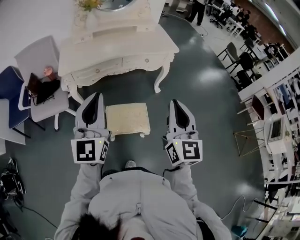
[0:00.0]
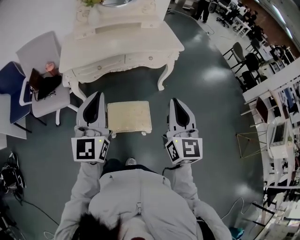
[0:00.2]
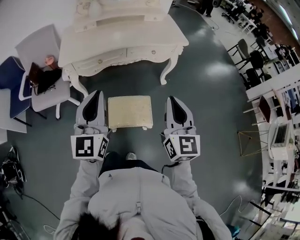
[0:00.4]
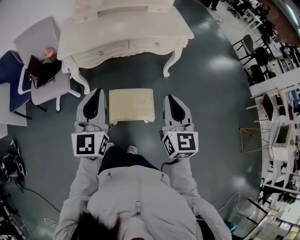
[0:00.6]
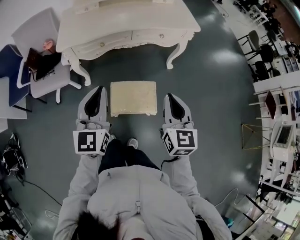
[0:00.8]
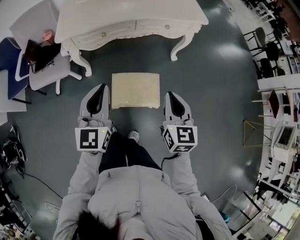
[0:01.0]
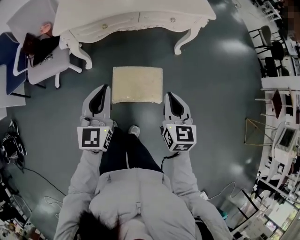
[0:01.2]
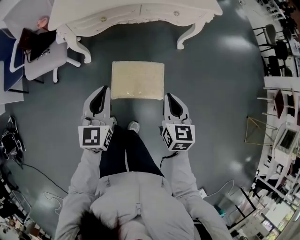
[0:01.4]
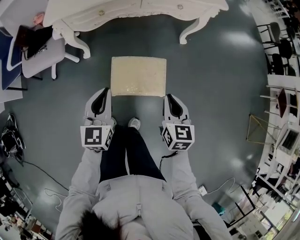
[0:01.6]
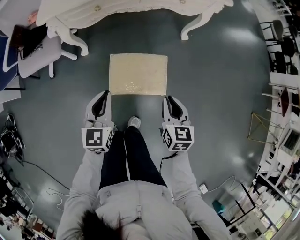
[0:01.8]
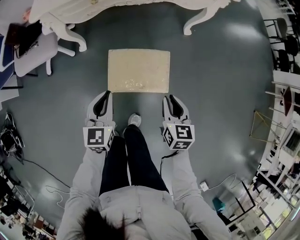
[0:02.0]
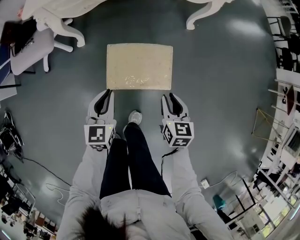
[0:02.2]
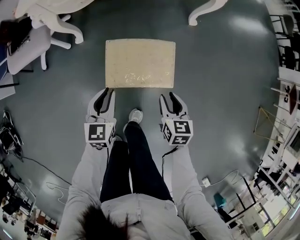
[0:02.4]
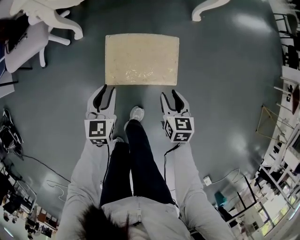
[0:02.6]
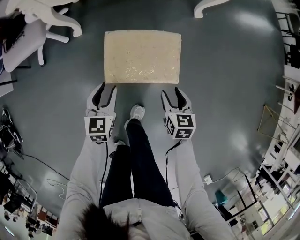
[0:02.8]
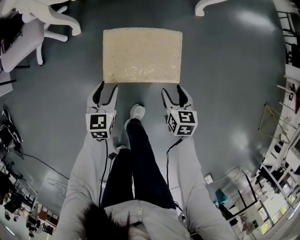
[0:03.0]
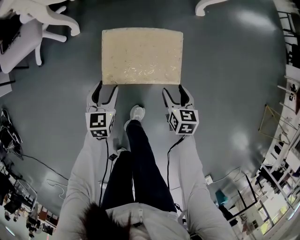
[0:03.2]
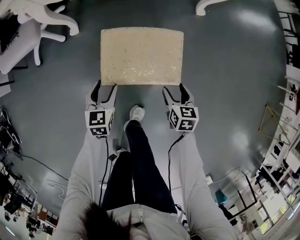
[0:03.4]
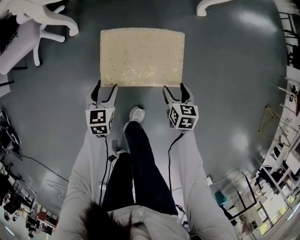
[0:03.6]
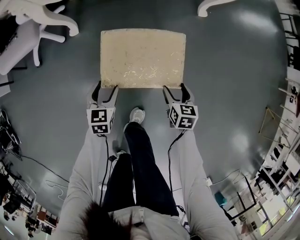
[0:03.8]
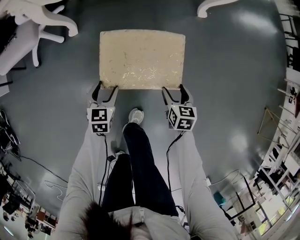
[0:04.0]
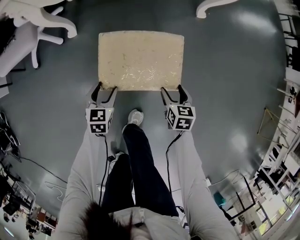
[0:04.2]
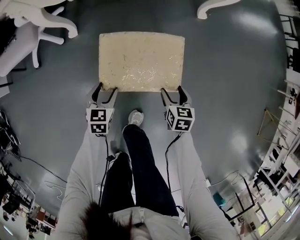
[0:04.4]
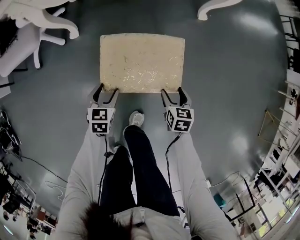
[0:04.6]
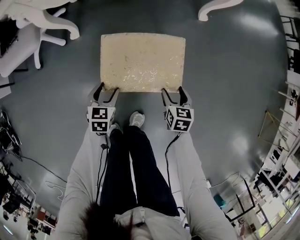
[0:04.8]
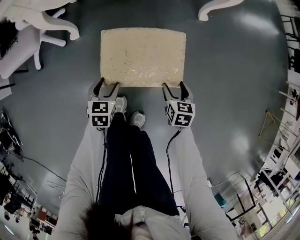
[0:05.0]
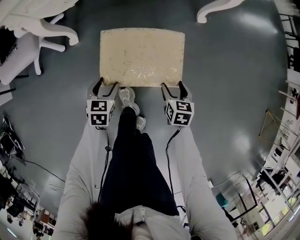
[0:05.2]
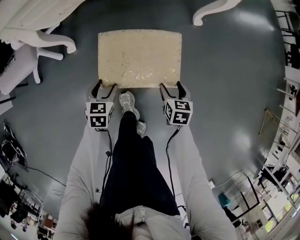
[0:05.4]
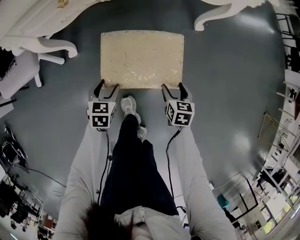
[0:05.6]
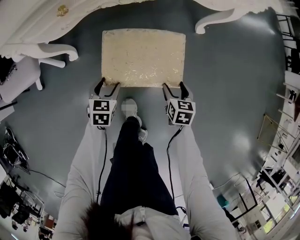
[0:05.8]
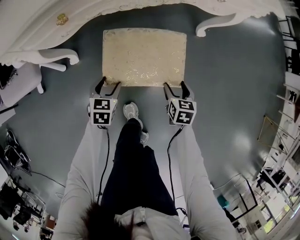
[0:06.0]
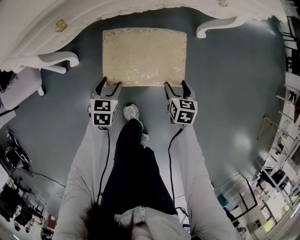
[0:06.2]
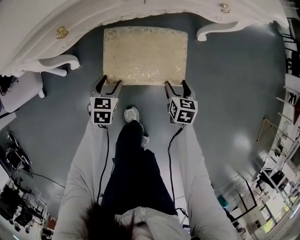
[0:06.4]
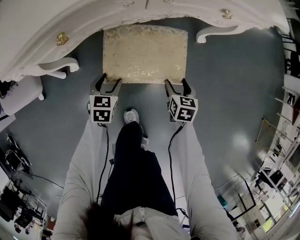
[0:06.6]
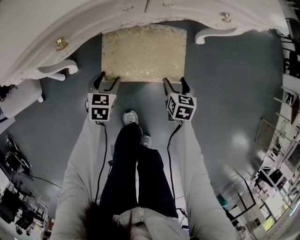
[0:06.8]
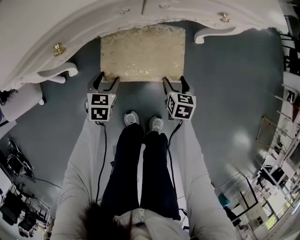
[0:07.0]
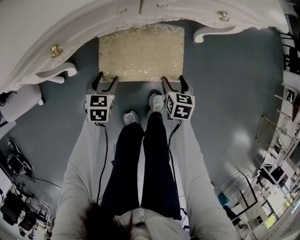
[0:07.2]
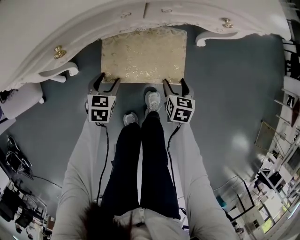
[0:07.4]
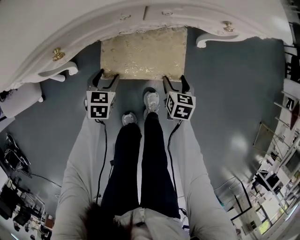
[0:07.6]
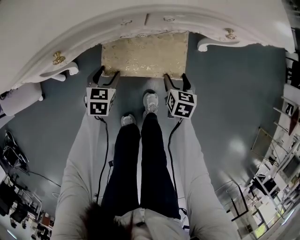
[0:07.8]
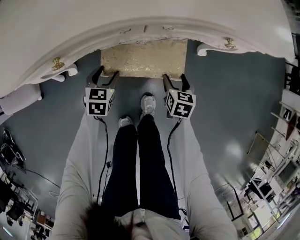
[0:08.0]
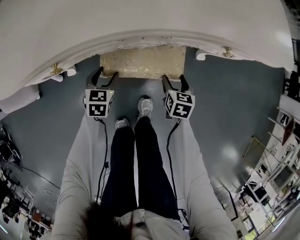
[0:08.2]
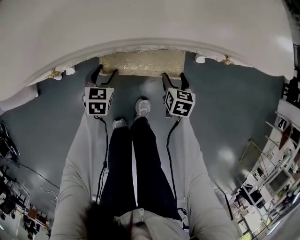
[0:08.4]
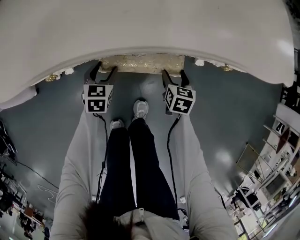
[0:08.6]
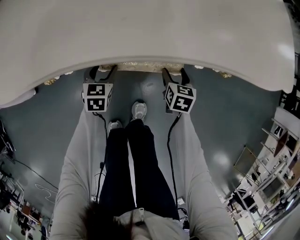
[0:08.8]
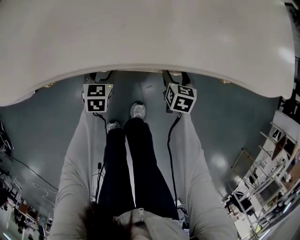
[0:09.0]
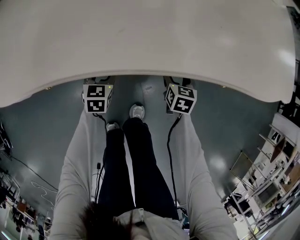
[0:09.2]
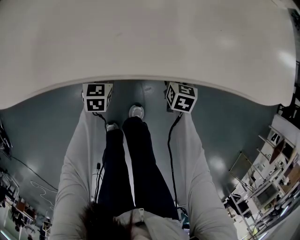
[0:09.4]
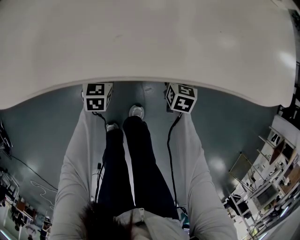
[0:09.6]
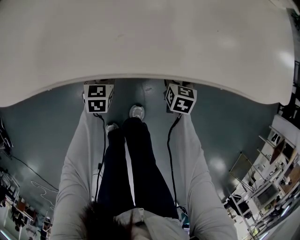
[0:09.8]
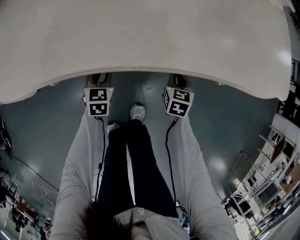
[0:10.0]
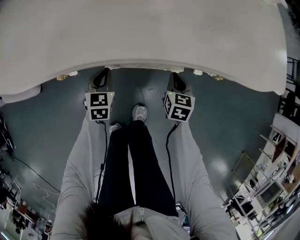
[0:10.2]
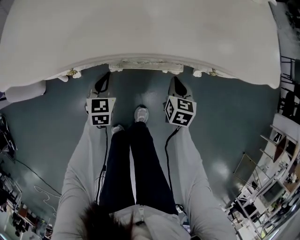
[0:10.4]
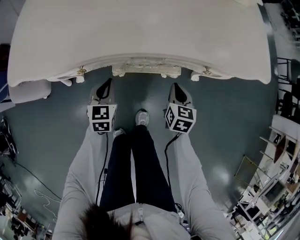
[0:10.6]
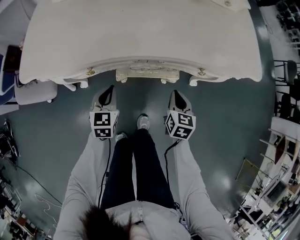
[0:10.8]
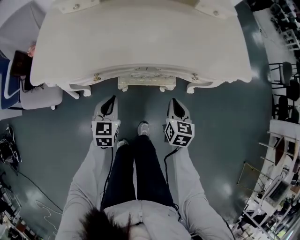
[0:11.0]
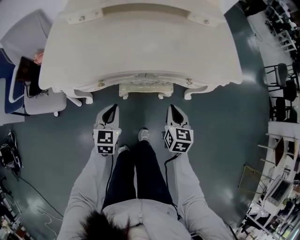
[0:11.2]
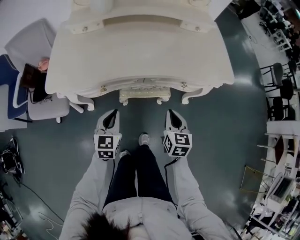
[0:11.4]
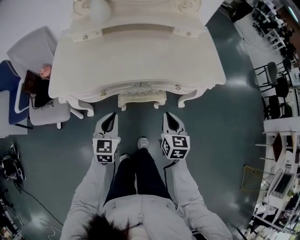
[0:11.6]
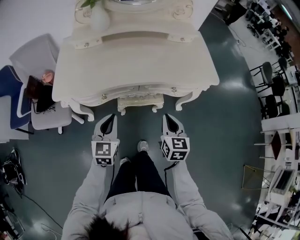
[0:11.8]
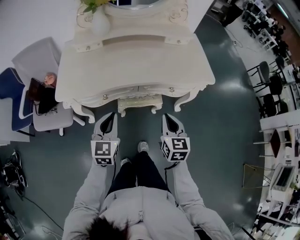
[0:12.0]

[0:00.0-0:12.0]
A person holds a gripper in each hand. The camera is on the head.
0:00.0 to 0:01.6: The two grippers go roughly 30 cm downward. The left gripper points its fingers about 30 degrees further downward. The right gripper tips its fingers downward by some 40 degrees.
0:01.6 to 0:03.0: Both grippers move downward, roughly 30 cm. The left gripper turns by approximately 20 degrees, and opens up, while the right gripper opens its fingers.
0:03.0 to 0:04.4: Both grippers travel together downward, approximately 10 cm.
0:04.4 to 0:06.0: Both grippers travel together forward, some 20 cm.
0:06.0 to 0:07.6: Both grippers travel together forward, about 10 cm.
0:07.6 to 0:09.0: The grippers both shift forward by roughly 15 cm.
0:09.0 to 0:10.4: Both grippers move upward, roughly 10 cm. The left gripper closes, while the right gripper closes.
0:10.4 to 0:12.0: The left gripper shifts about 35 cm upward, and rotates approximately 20 degrees. Meanwhile the right gripper shifts about 35 cm upward and backward, and rotates some 20 degrees.

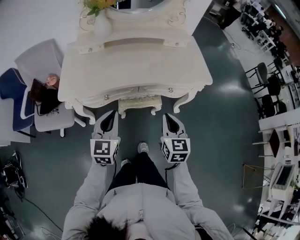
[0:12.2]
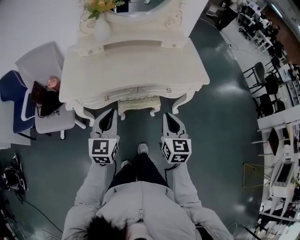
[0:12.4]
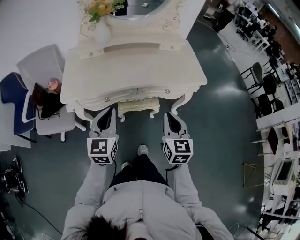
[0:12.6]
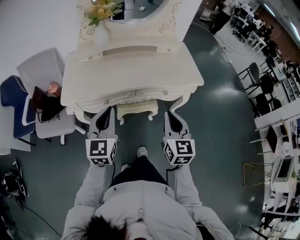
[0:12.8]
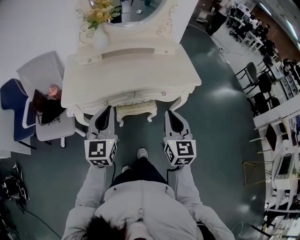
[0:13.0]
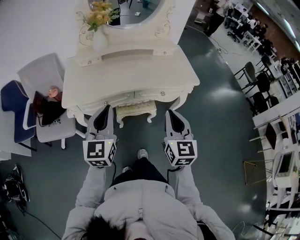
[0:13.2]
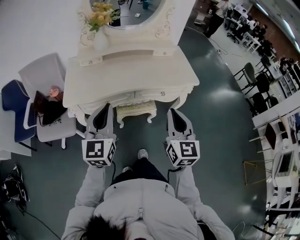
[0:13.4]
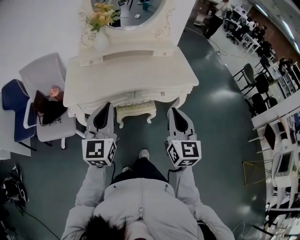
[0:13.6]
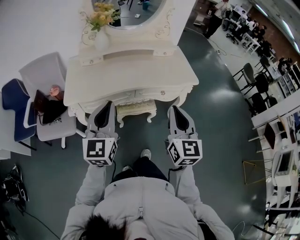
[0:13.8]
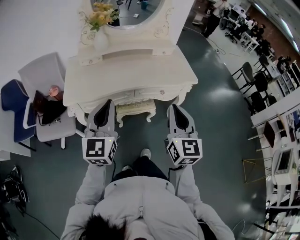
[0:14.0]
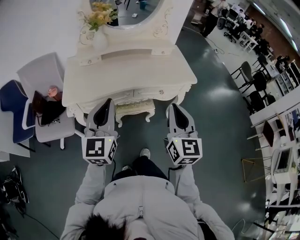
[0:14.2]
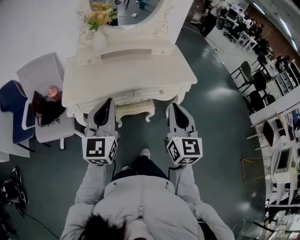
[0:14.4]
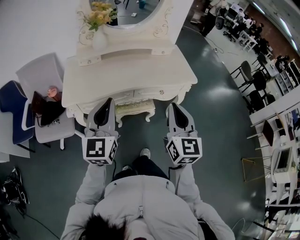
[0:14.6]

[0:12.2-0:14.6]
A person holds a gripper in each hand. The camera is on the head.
0:12.2 to 0:13.4: The left gripper moves upward, some 15 cm. Meanwhile the right gripper travels upward and backward by about 15 cm.
0:13.4 to 0:14.6: The grippers make only small movements.

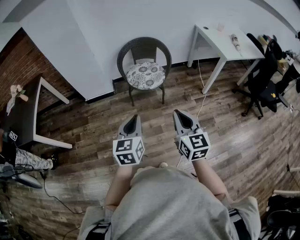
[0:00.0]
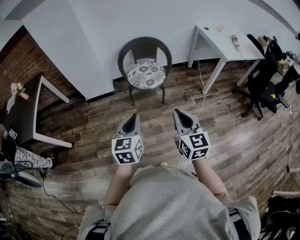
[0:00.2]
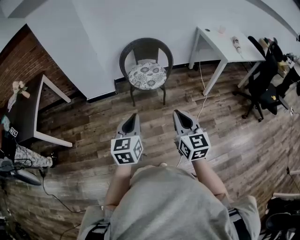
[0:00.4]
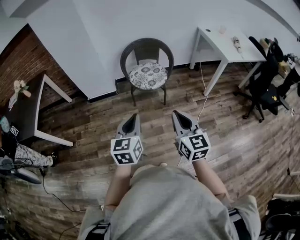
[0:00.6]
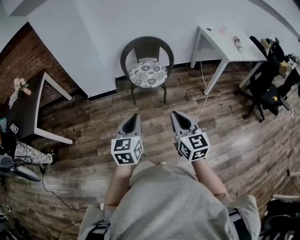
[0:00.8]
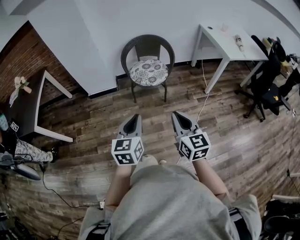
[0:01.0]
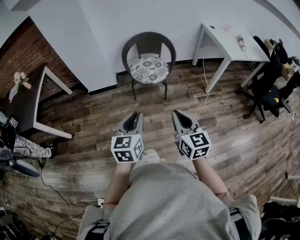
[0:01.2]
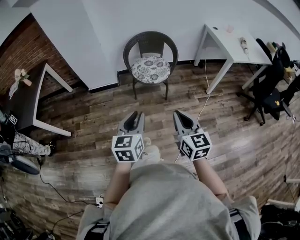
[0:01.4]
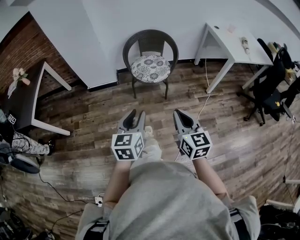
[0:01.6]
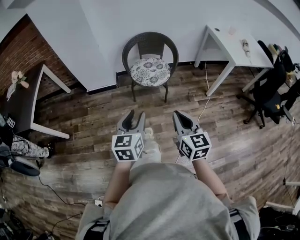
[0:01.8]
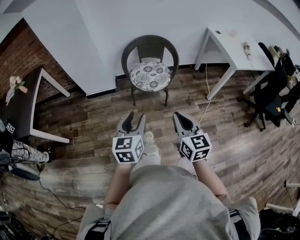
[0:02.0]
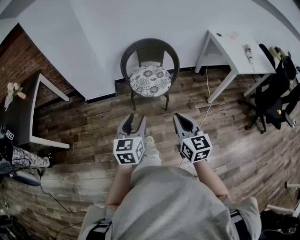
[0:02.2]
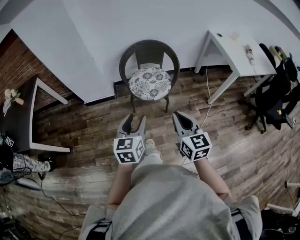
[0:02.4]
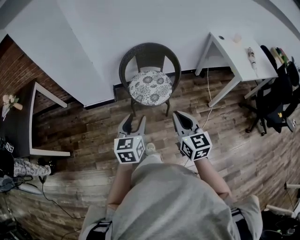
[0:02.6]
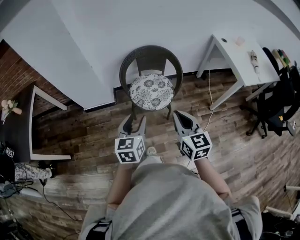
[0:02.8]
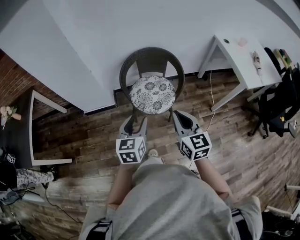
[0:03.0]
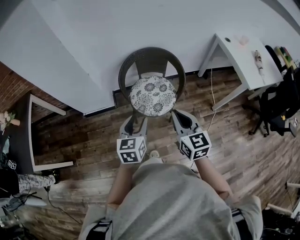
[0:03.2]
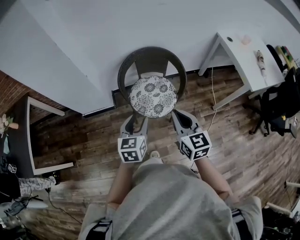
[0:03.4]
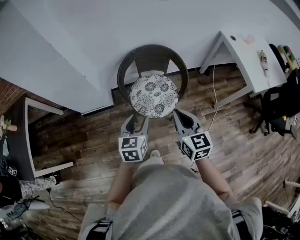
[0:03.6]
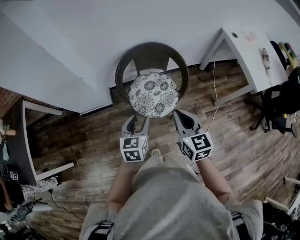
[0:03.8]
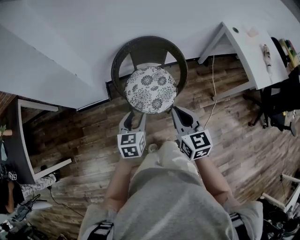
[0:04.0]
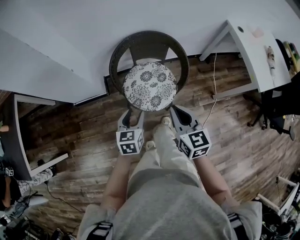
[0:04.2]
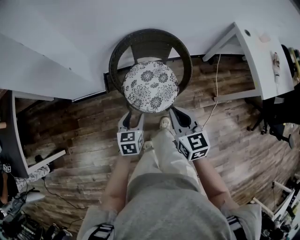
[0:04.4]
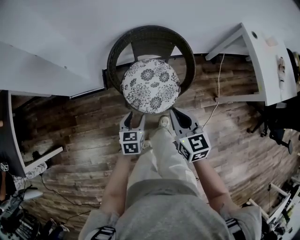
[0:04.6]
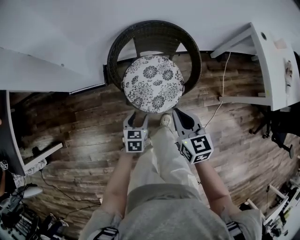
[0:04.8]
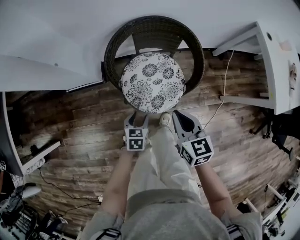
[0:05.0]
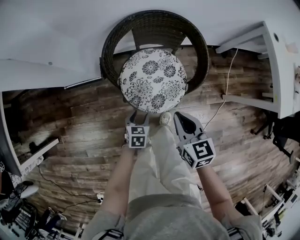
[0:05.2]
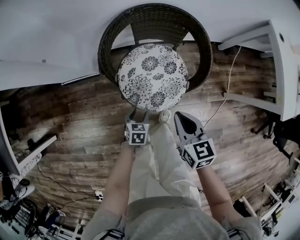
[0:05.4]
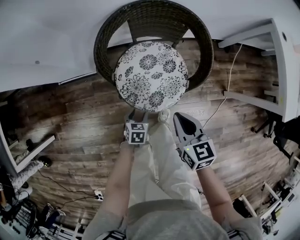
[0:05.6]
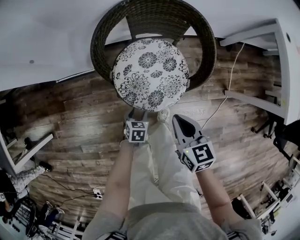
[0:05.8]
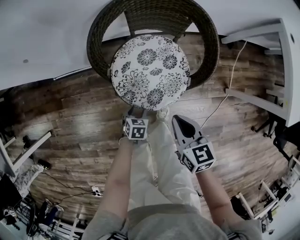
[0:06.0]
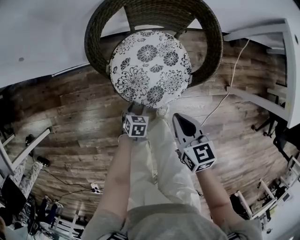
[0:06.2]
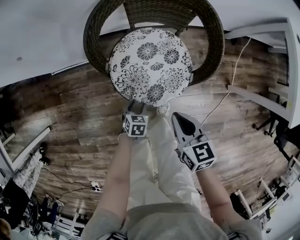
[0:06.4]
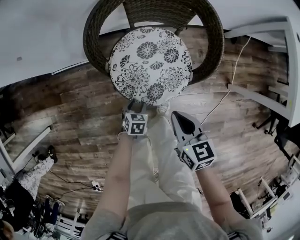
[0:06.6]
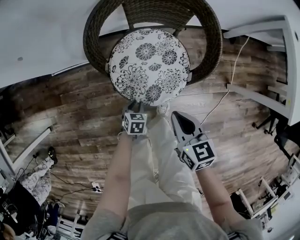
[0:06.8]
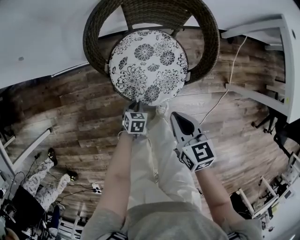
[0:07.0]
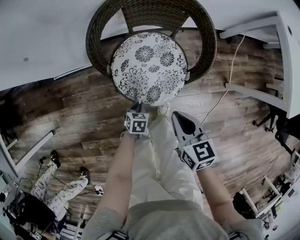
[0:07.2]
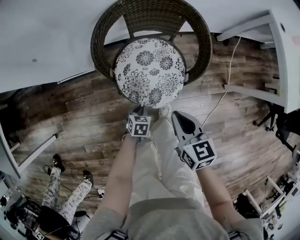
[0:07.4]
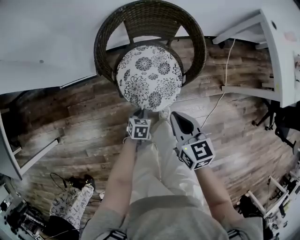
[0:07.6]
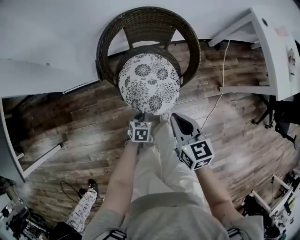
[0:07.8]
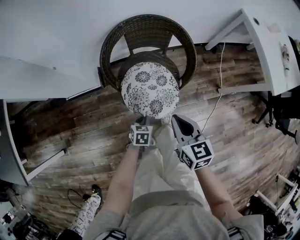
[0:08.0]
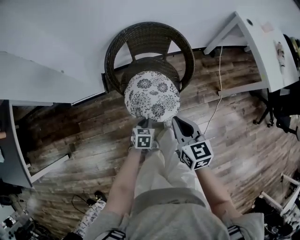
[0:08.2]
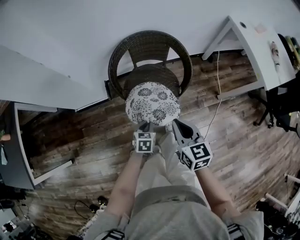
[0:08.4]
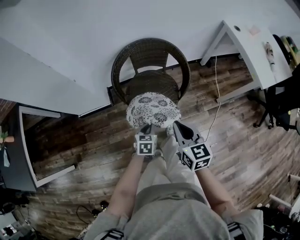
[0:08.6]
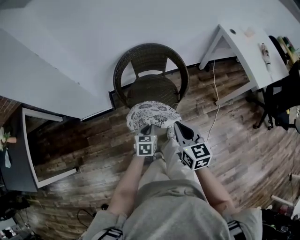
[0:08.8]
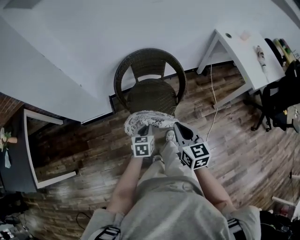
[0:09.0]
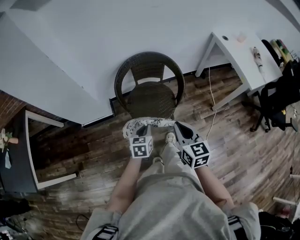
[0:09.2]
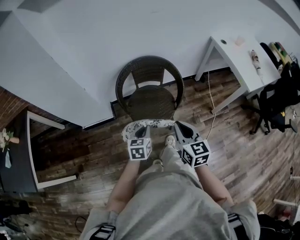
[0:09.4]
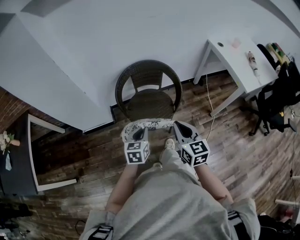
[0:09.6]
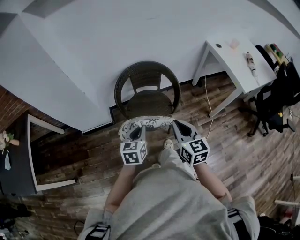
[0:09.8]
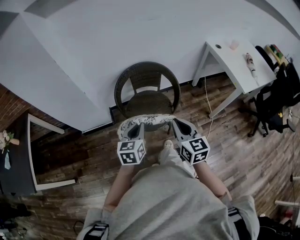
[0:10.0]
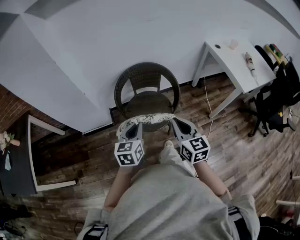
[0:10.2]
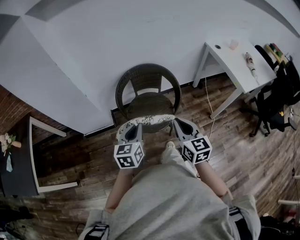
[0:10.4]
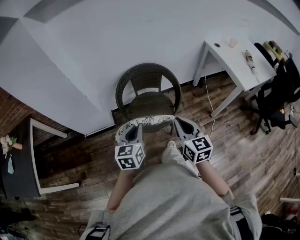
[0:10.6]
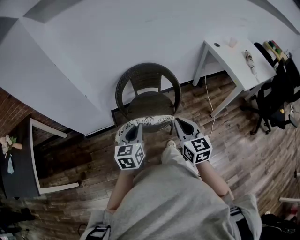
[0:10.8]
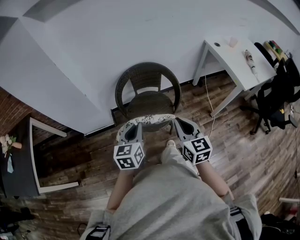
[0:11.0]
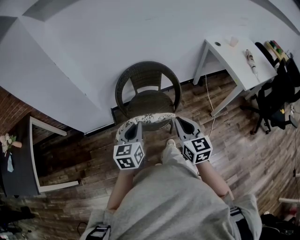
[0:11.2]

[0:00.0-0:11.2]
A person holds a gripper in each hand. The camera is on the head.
0:00.0 to 0:01.6: The left gripper opens.
0:01.6 to 0:03.2: Both grippers move forward, some 40 cm.
0:03.2 to 0:04.8: The right gripper heads forward and downward, covering some 25 cm. Meanwhile the left gripper is displaced downward and forward by about 35 cm, and swivels roughly 20 degrees.
0:04.8 to 0:06.4: The grippers both shift downward by some 20 cm.
0:06.4 to 0:08.0: The right gripper is displaced upward and backward by approximately 15 cm; the left gripper goes approximately 15 cm upward, and closes.
0:08.0 to 0:09.6: The left gripper heads upward, covering about 30 cm, and swivels some 30 degrees, while the right gripper moves upward and backward, approximately 20 cm.
0:09.6 to 0:11.2: The left gripper moves upward, roughly 10 cm.
